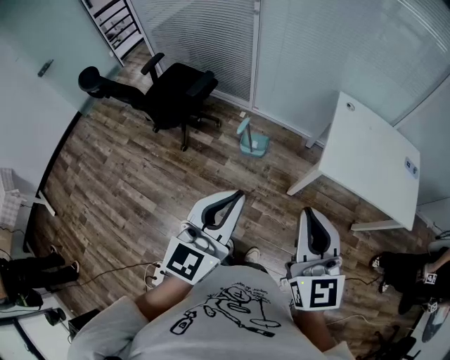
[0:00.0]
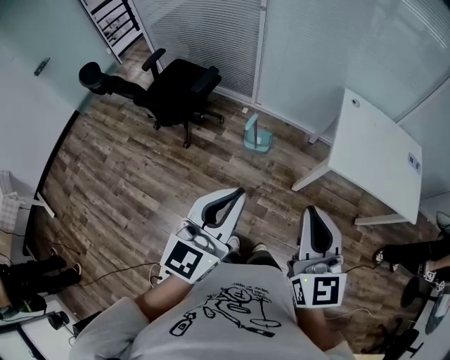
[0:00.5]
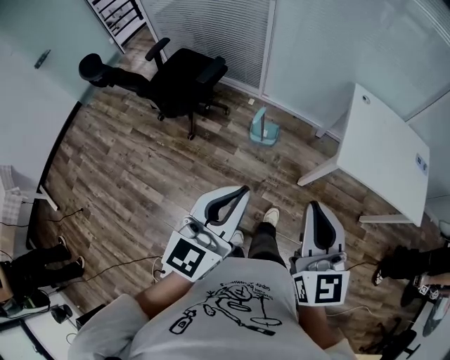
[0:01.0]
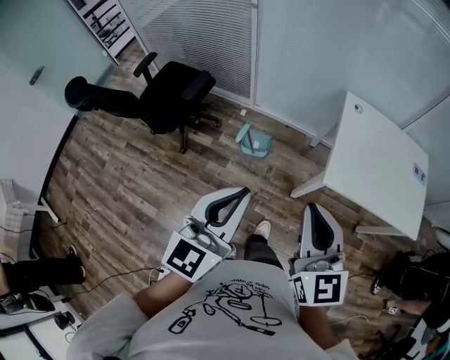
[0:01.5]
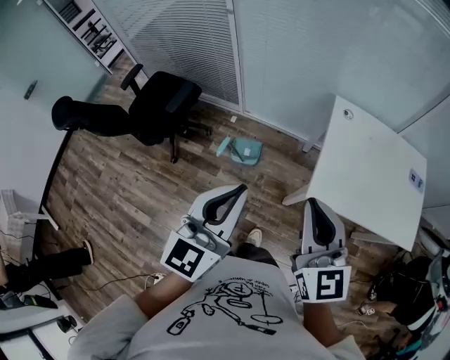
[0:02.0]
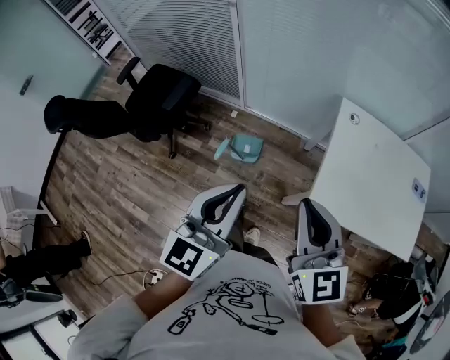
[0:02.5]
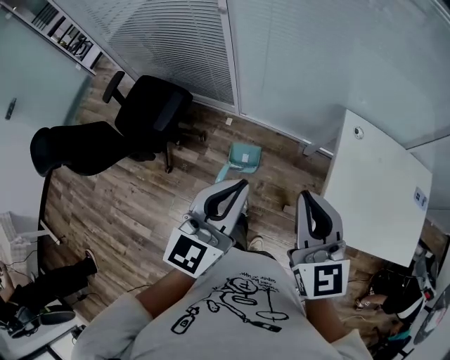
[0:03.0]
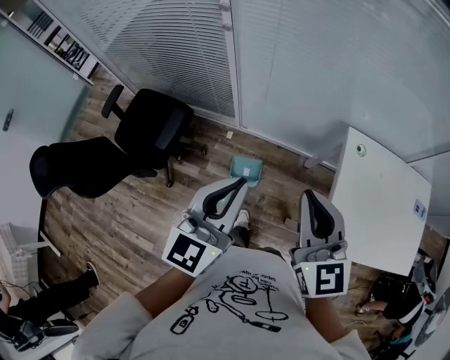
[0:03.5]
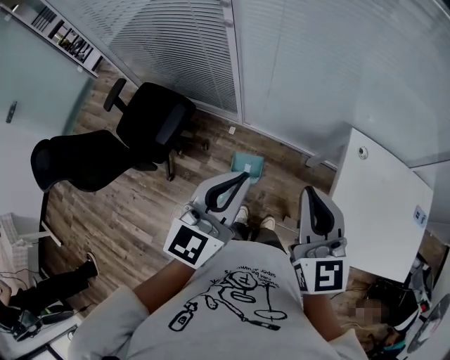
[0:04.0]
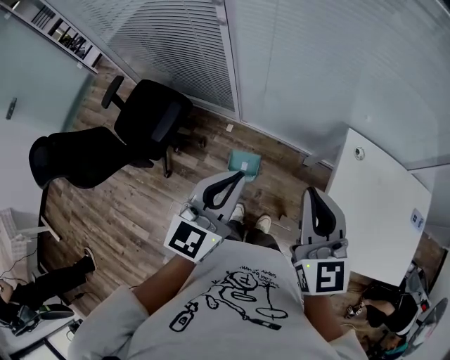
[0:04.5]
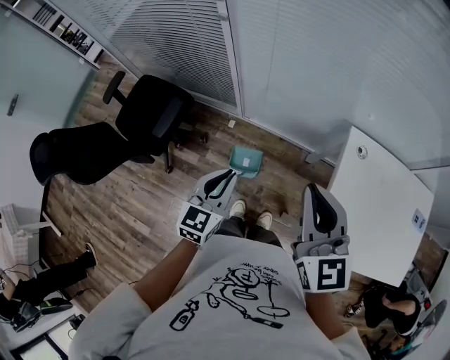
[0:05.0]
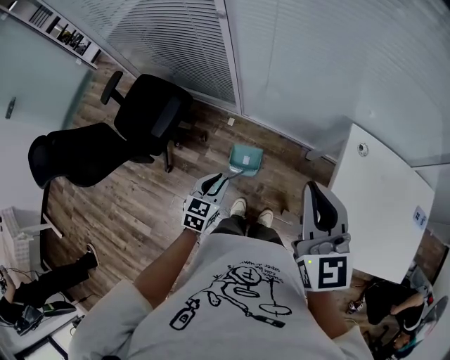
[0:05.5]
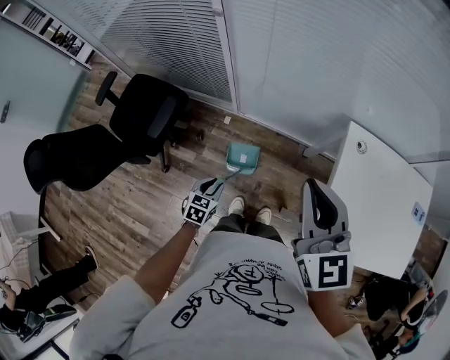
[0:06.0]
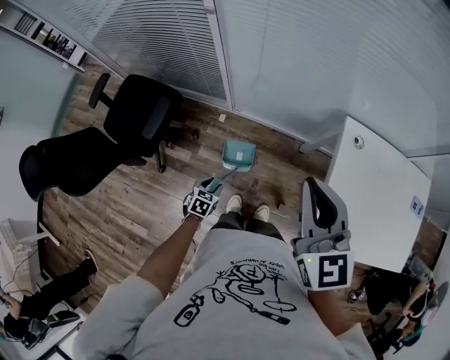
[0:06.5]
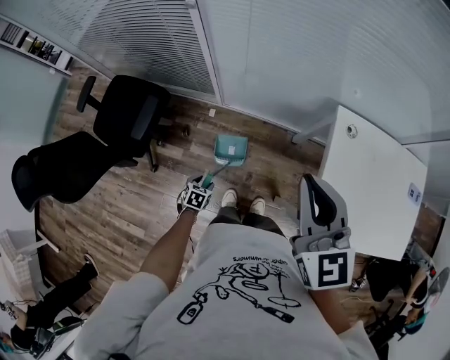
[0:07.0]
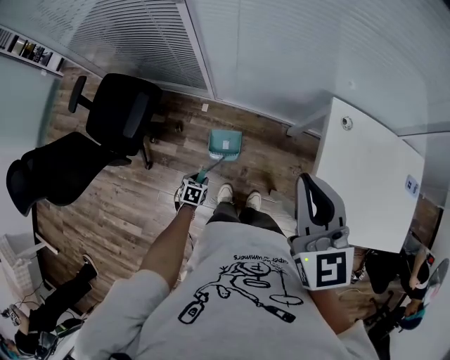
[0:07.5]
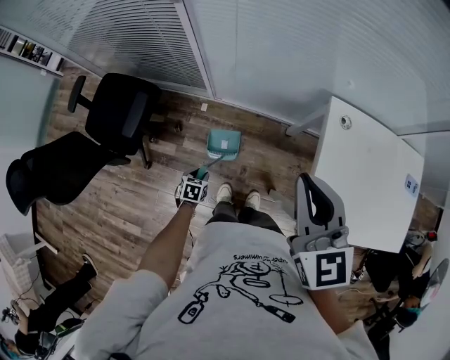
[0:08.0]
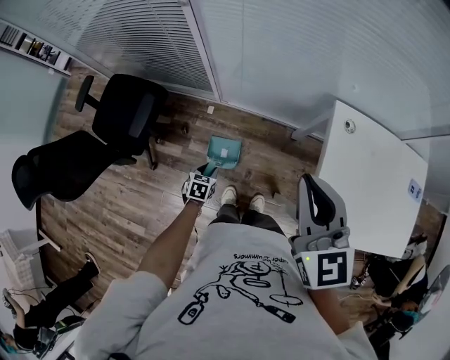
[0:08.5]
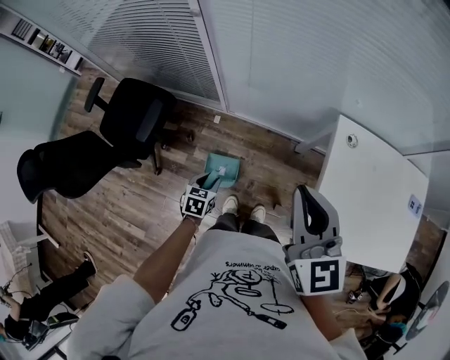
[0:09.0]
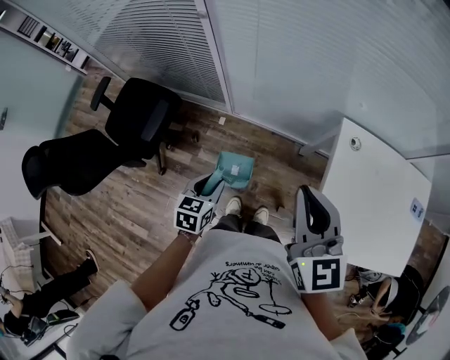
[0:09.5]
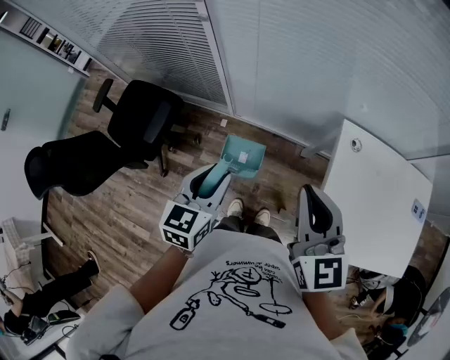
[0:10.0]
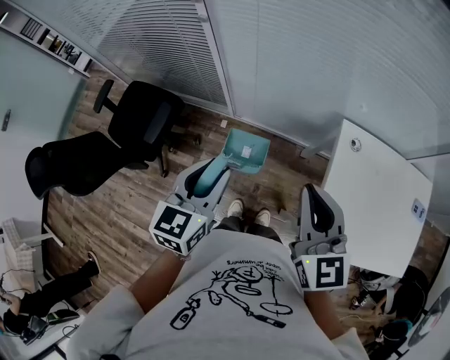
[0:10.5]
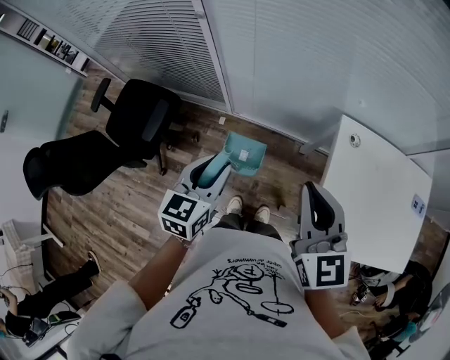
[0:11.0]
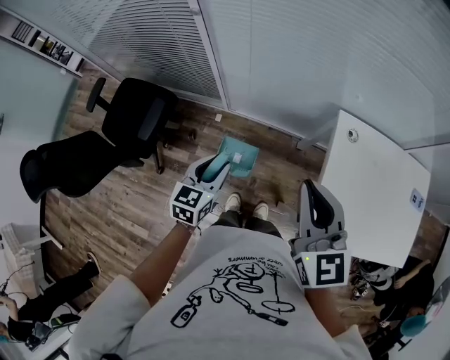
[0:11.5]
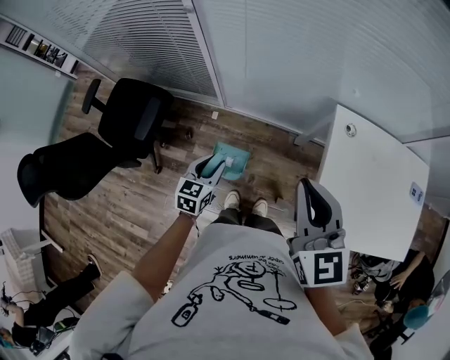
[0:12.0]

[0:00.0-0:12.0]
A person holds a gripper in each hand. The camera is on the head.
0:00.0 to 0:02.0: The two grippers go approximately 20 cm forward.
0:02.0 to 0:04.0: The grippers both shift forward by some 30 cm.
0:04.0 to 0:06.0: The left gripper travels downward by approximately 40 cm, points its fingers roughly 40 degrees further downward, and opens.
0:06.0 to 0:08.0: The left gripper travels downward by approximately 15 cm.
0:08.0 to 0:10.0: The left gripper moves upward, some 40 cm, and points its fingers approximately 40 degrees further upward.
0:10.0 to 0:12.0: The left gripper moves downward, some 15 cm.

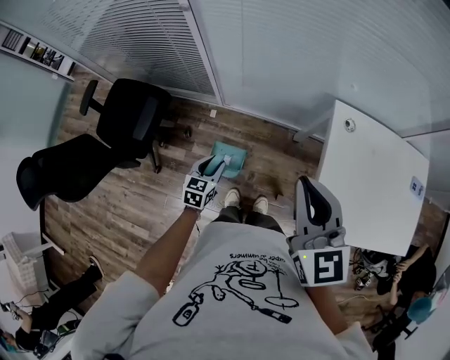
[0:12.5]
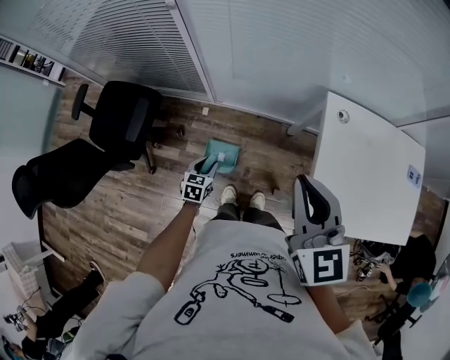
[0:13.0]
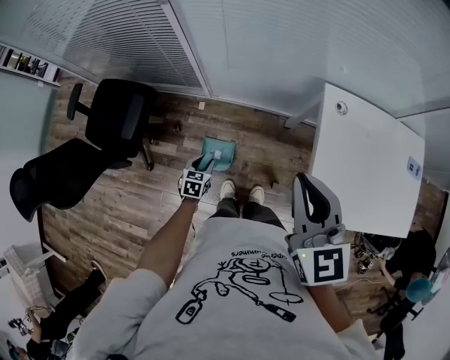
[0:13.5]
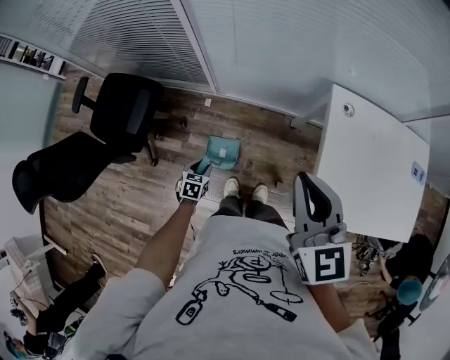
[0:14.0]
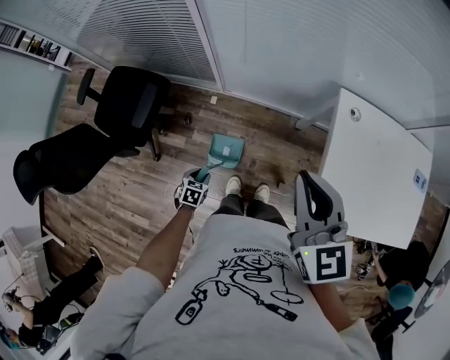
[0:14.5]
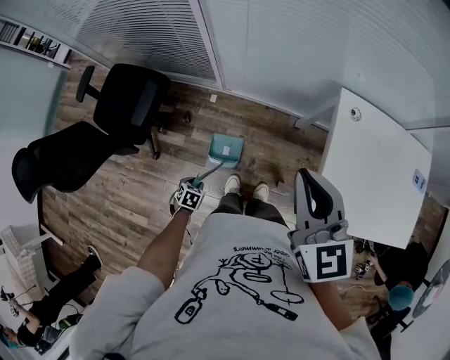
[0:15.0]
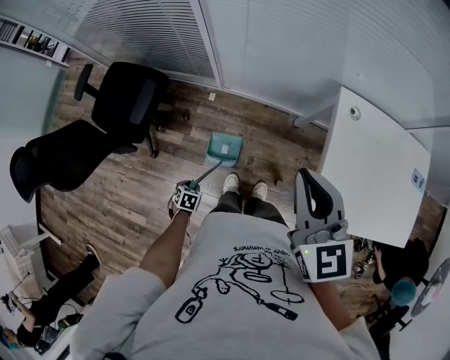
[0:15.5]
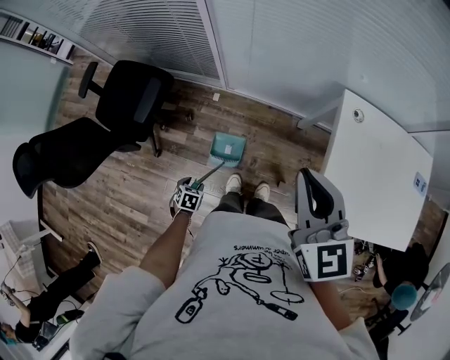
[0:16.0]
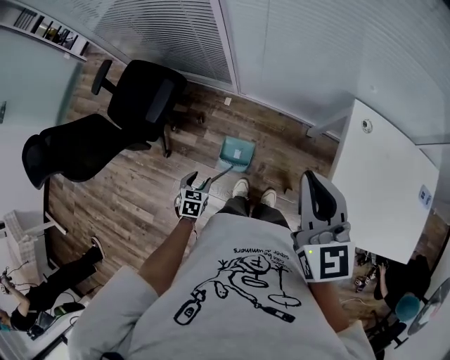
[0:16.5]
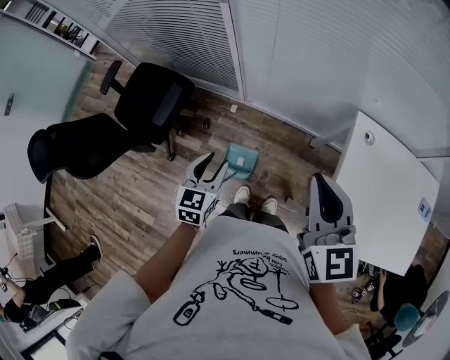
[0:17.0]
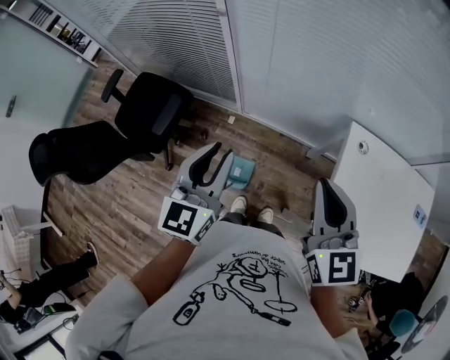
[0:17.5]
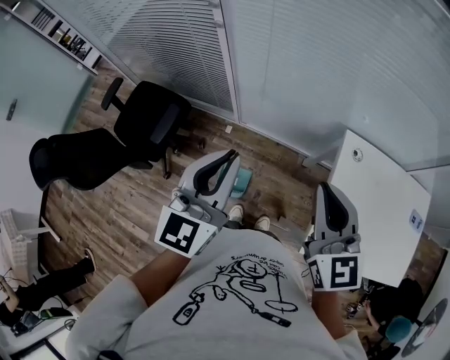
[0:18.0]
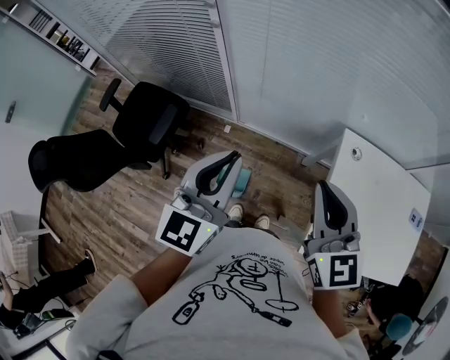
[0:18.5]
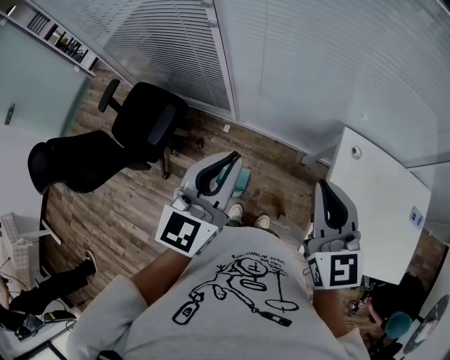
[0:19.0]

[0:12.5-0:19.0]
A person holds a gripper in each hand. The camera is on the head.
0:12.5 to 0:14.5: The left gripper heads downward, backward and to the left, covering roughly 20 cm, and rotates some 30 degrees.
0:14.5 to 0:17.0: The left gripper is displaced upward by some 25 cm, and tips its fingers upward by approximately 30 degrees.
0:17.0 to 0:19.0: The left gripper heads upward, covering some 25 cm, turns by approximately 30 degrees, and closes up. Meanwhile the right gripper changes place by approximately 5 cm.

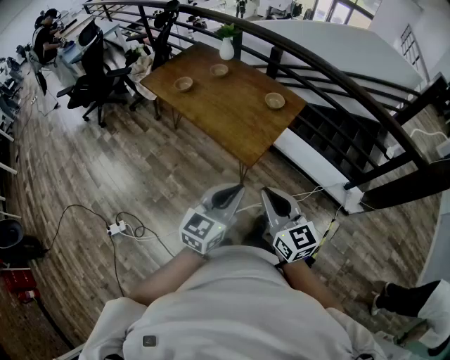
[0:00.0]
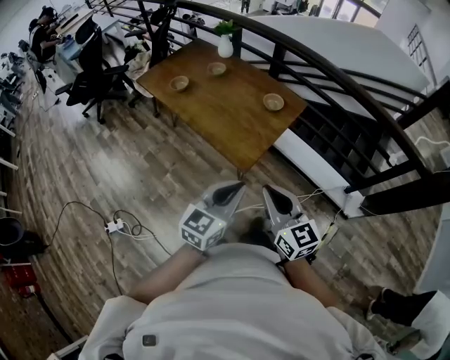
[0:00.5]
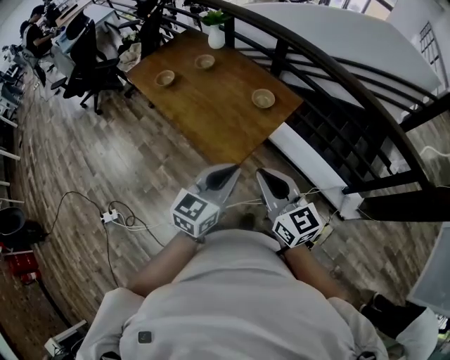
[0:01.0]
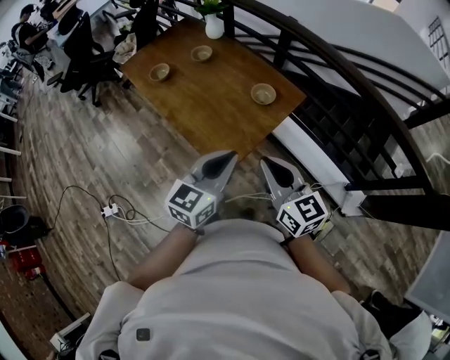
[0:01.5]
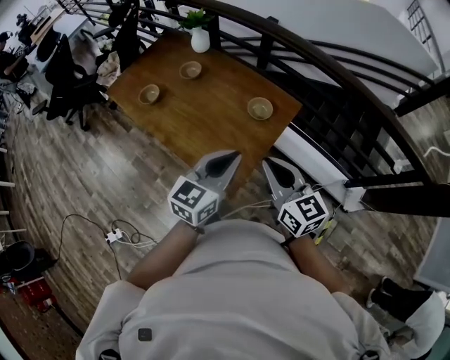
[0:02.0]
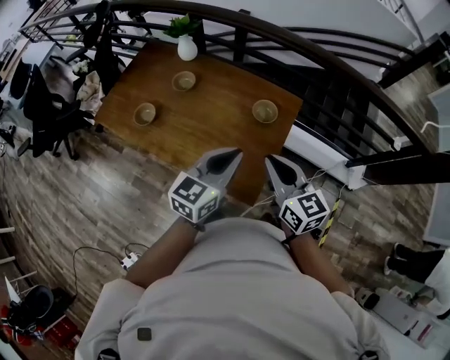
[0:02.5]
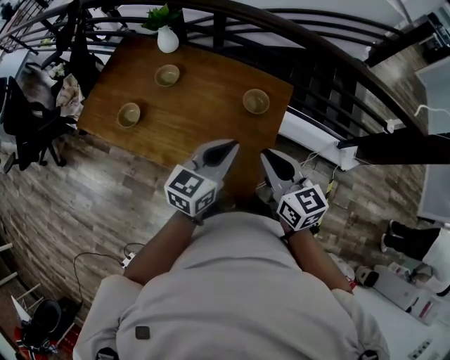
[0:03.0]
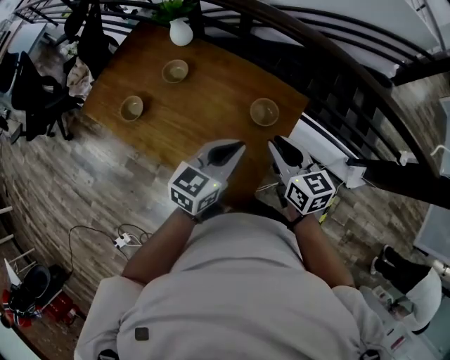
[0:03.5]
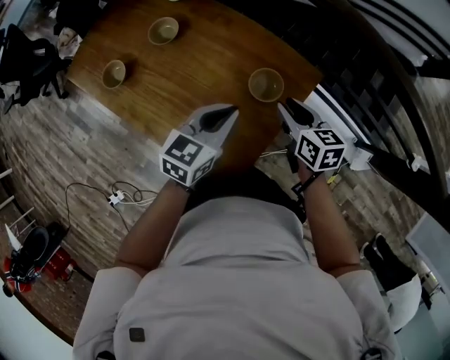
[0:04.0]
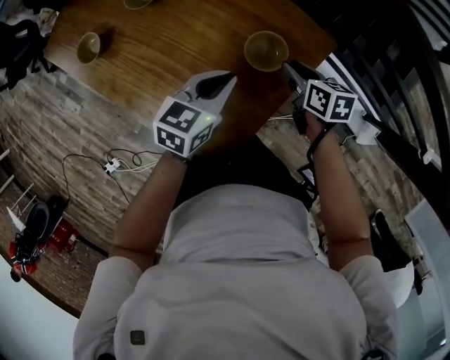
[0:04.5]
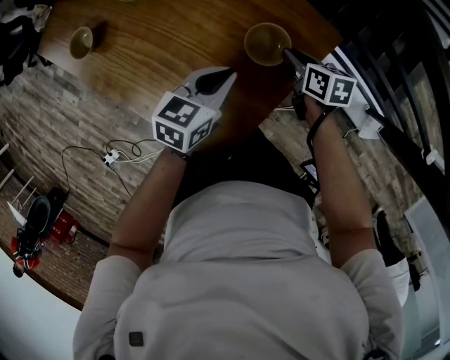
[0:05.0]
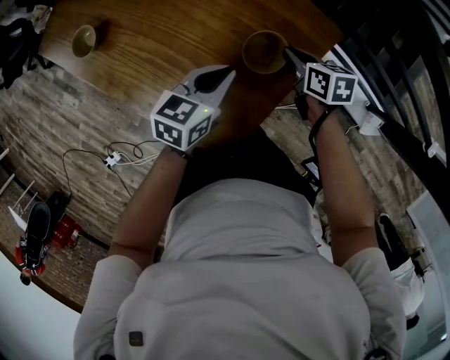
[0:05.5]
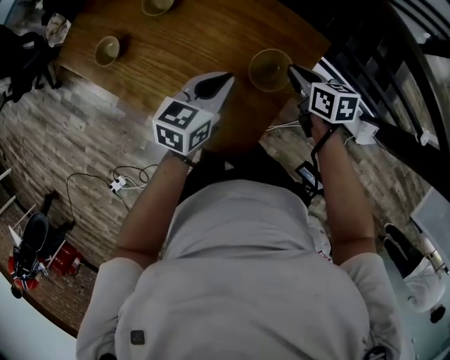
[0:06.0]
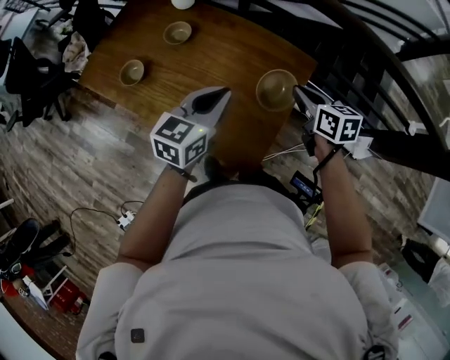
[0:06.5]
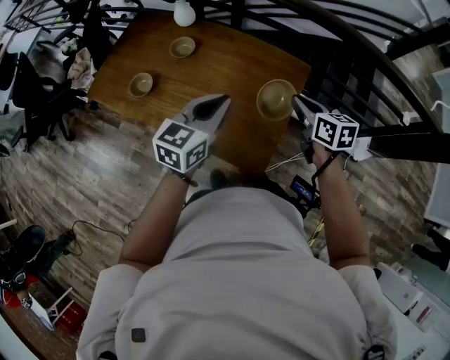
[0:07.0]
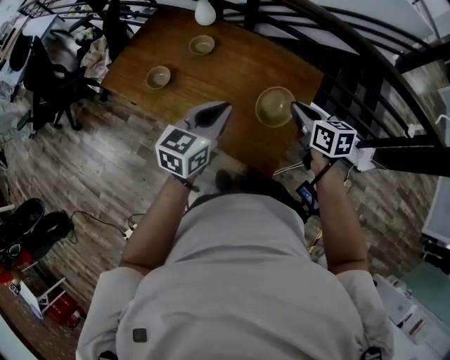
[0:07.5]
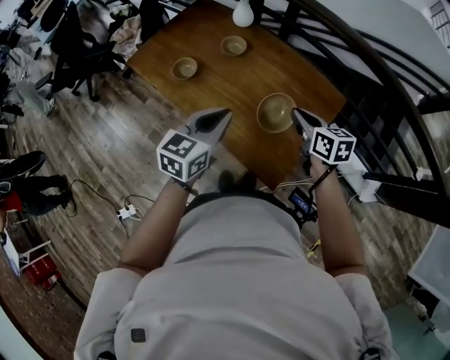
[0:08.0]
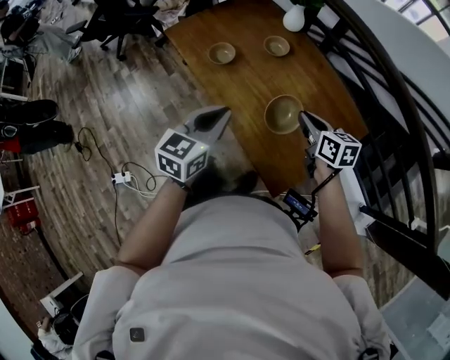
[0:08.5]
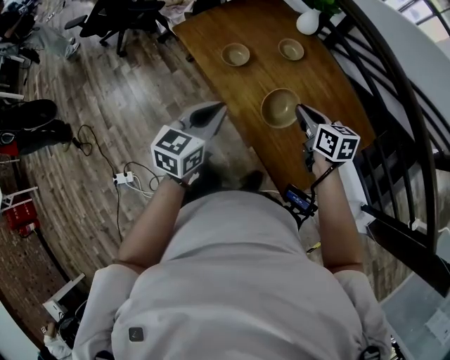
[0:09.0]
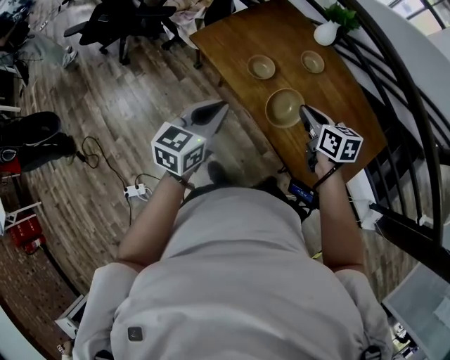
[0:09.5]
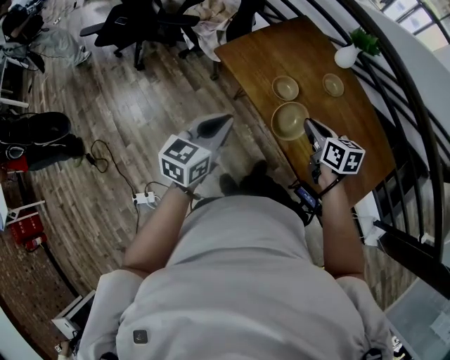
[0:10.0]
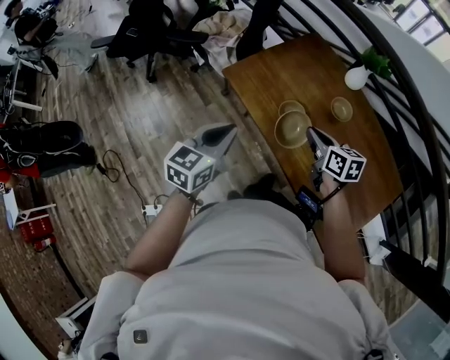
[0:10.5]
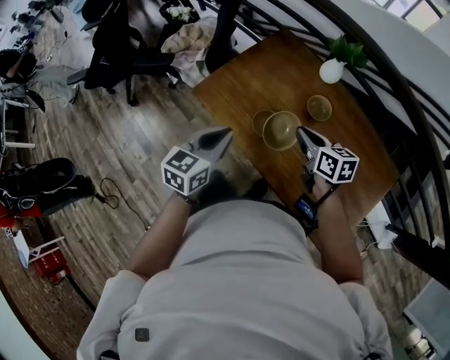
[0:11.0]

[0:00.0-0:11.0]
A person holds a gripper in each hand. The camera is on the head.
0:00.0 to 0:02.0: Both grippers move forward, some 40 cm.
0:02.0 to 0:03.5: The right gripper moves forward, roughly 20 cm, and opens. The left gripper is displaced forward and to the left by roughly 20 cm.
0:03.5 to 0:05.5: The left gripper moves downward, approximately 25 cm, and changes its angle by roughly 20 degrees. Meanwhile the right gripper goes roughly 35 cm downward and forward, and rotates roughly 30 degrees.
0:05.5 to 0:07.5: The left gripper travels upward, to the left and backward by roughly 40 cm, and rotates roughly 20 degrees, while the right gripper moves upward, backward and to the left, roughly 40 cm, and swivels some 20 degrees.
0:07.5 to 0:09.0: The left gripper ends up roughly 25 cm from where it was, and turns by approximately 30 degrees. The right gripper moves roughly 25 cm, and turns by some 20 degrees.
0:09.0 to 0:11.0: Both grippers move forward and to the left, about 30 cm.
